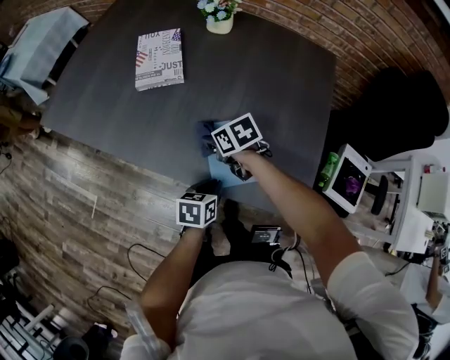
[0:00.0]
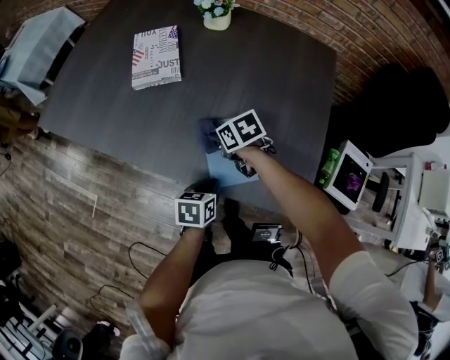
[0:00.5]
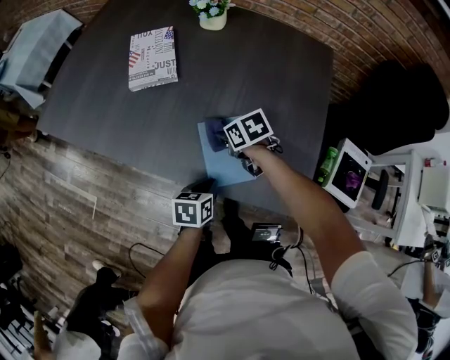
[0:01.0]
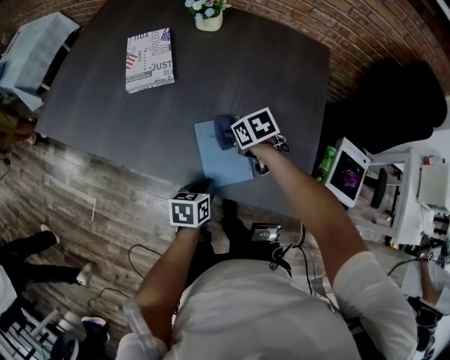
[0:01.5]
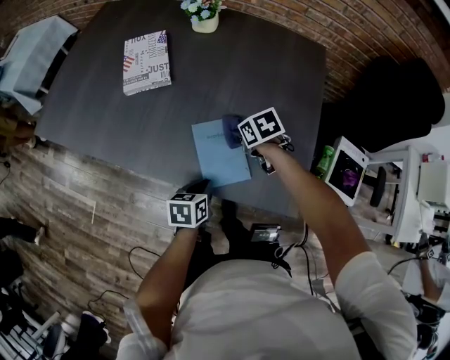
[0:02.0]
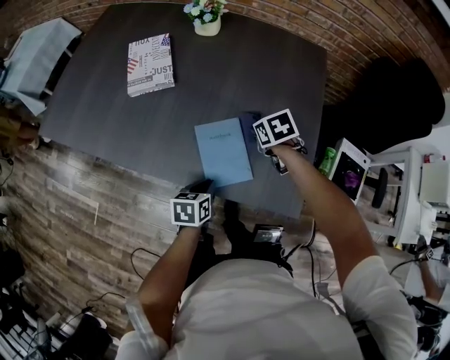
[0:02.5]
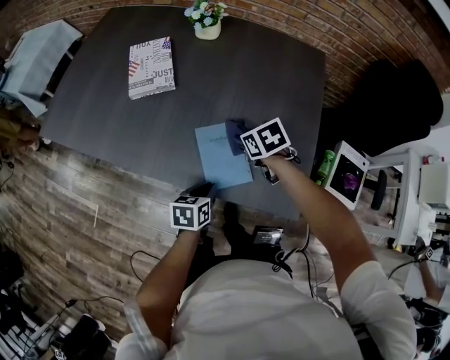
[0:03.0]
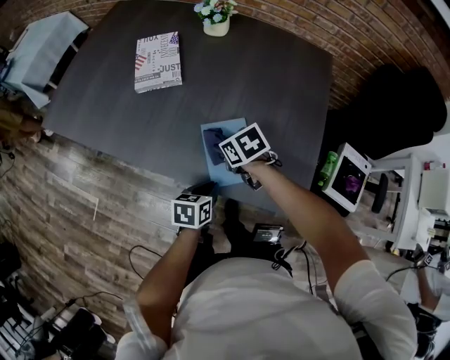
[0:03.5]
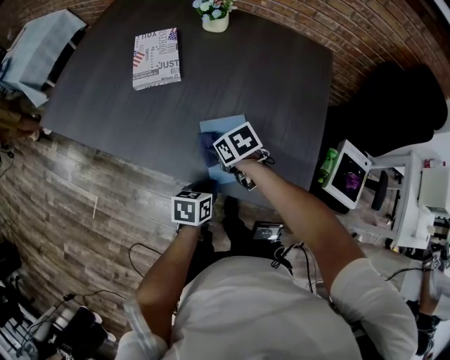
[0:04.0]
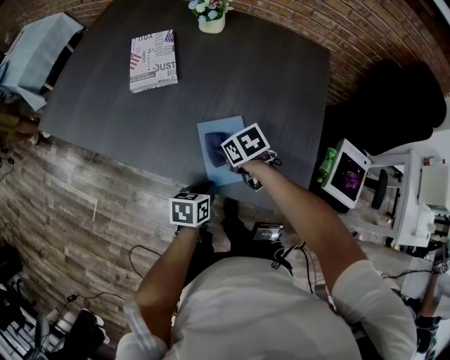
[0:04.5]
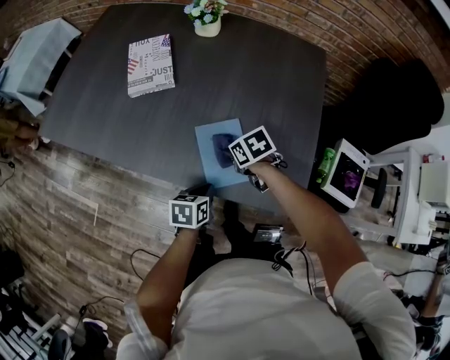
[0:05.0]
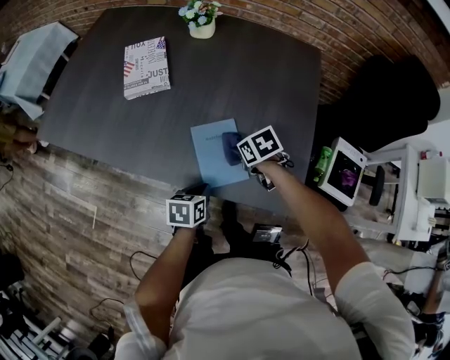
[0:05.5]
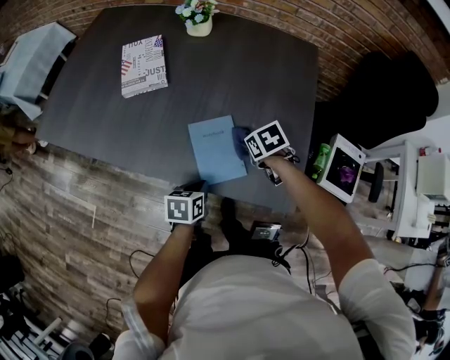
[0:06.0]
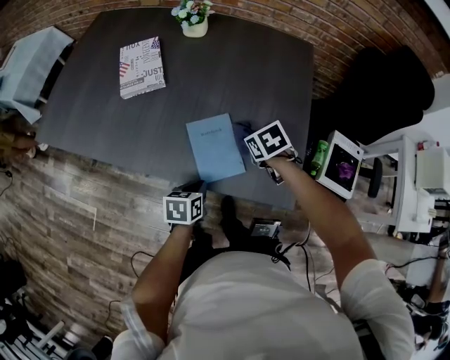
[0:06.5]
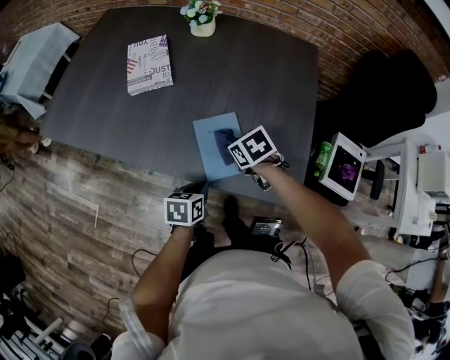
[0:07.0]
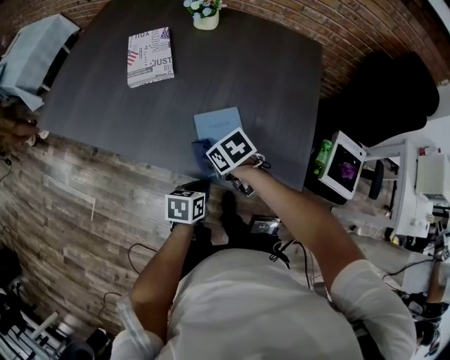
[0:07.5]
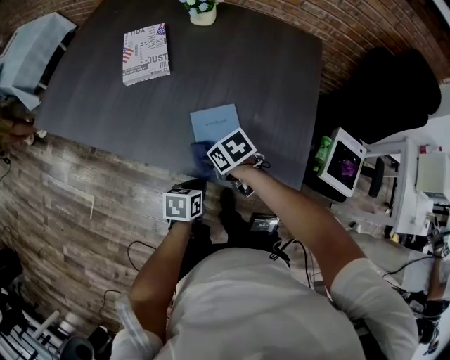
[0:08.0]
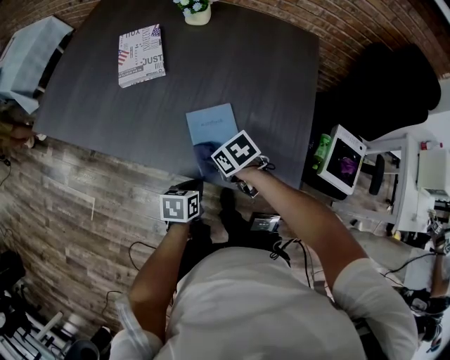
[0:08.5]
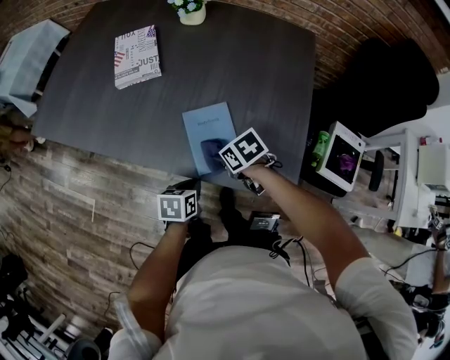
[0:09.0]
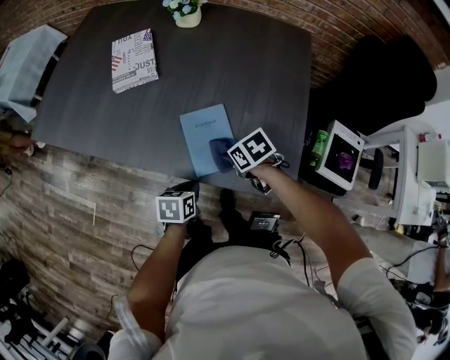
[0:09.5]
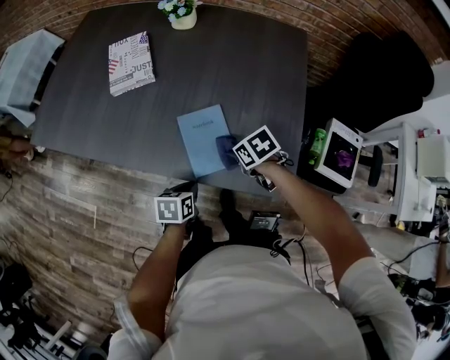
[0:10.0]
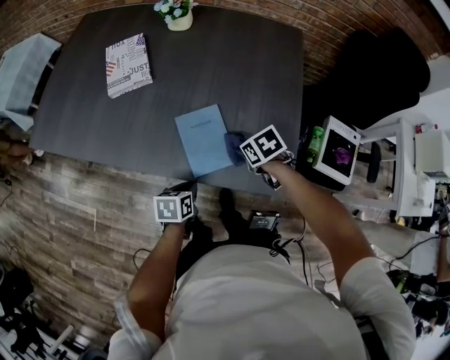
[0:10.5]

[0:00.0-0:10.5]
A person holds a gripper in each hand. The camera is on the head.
0:00.0 to 0:02.0: The right gripper shifts approximately 15 cm to the right.
0:02.0 to 0:04.0: The right gripper moves to the left and backward, some 10 cm.
0:04.0 to 0:06.5: The right gripper heads to the right, covering roughly 15 cm.
0:06.5 to 0:08.5: The right gripper ends up approximately 15 cm from where it was, and rotates some 20 degrees.
0:08.5 to 0:10.5: The right gripper moves approximately 15 cm.

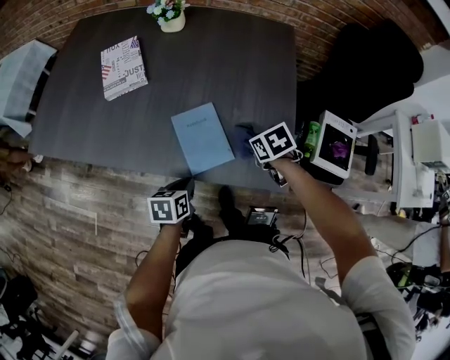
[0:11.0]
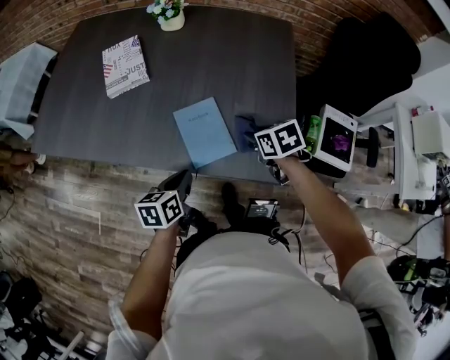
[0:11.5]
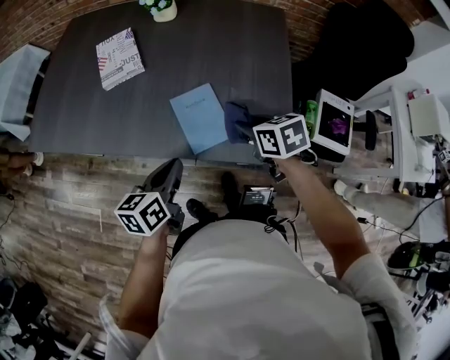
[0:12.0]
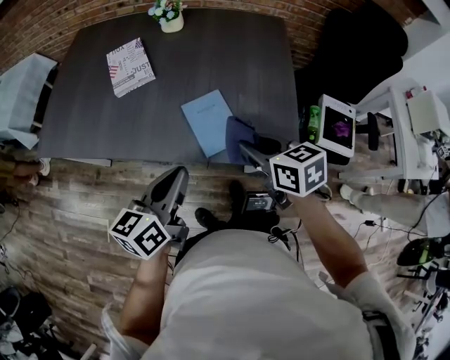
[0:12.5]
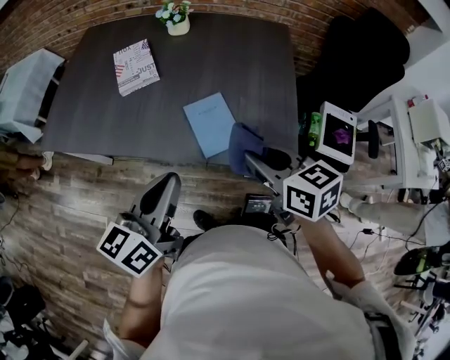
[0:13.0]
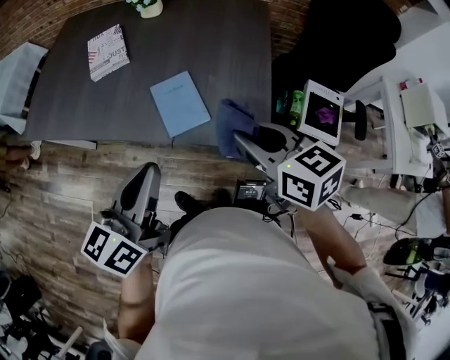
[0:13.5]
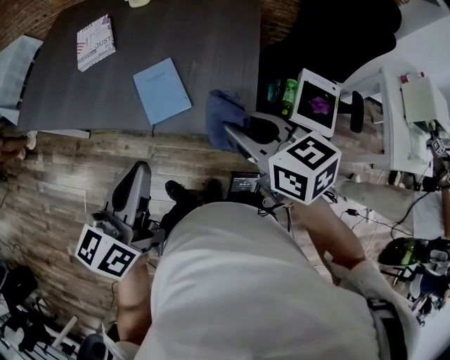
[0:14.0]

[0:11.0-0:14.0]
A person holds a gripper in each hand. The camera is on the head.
0:11.0 to 0:12.5: The left gripper goes about 20 cm upward, and tips its fingers upward by approximately 30 degrees, while the right gripper is displaced upward, backward and to the left by approximately 20 cm, and tilts its fingers some 30 degrees upward.
0:12.5 to 0:14.0: Both grippers move to the right, backward and upward, roughly 15 cm.

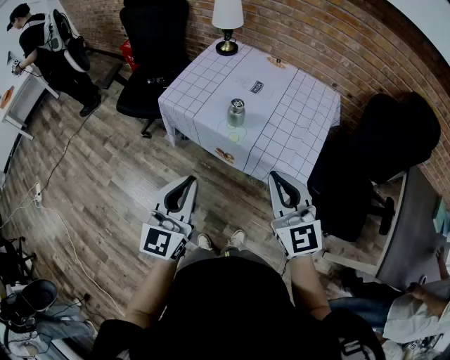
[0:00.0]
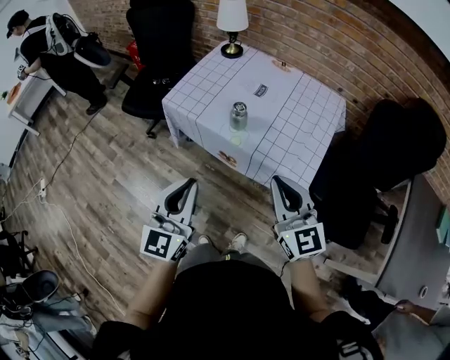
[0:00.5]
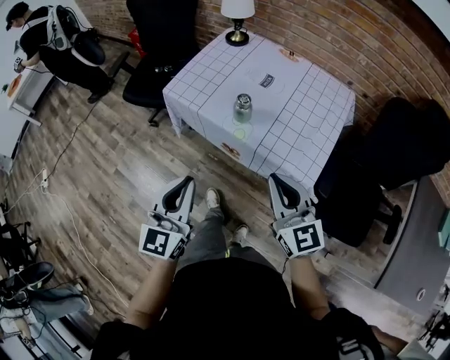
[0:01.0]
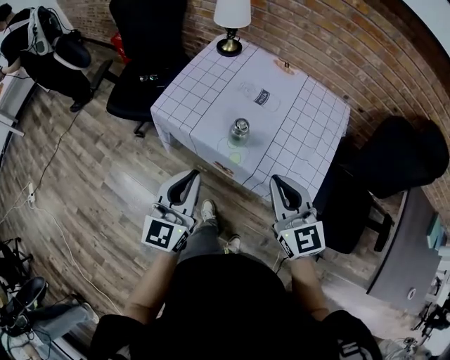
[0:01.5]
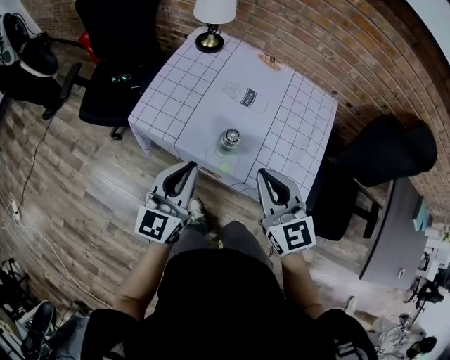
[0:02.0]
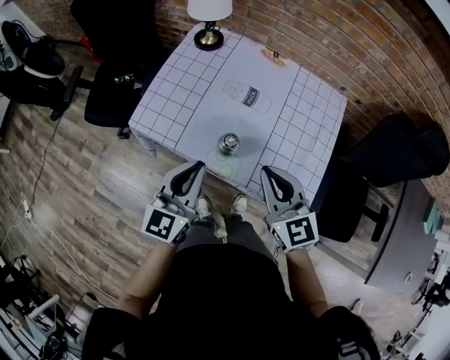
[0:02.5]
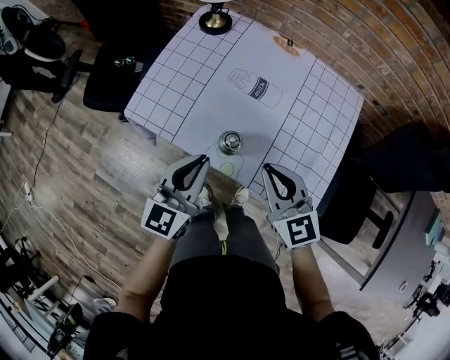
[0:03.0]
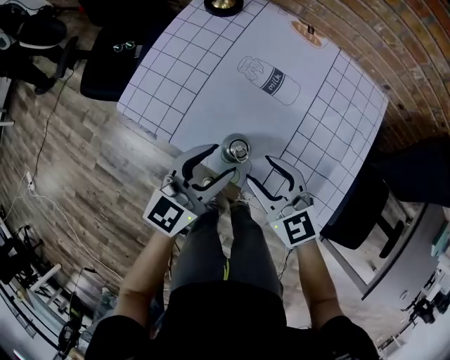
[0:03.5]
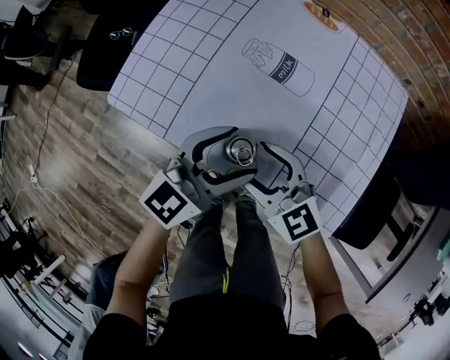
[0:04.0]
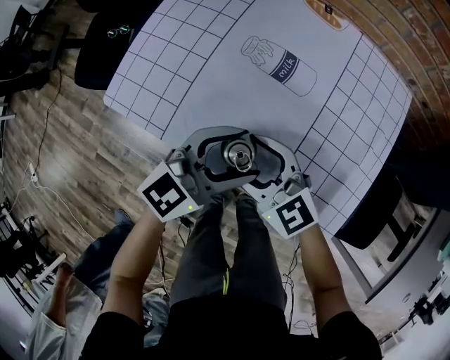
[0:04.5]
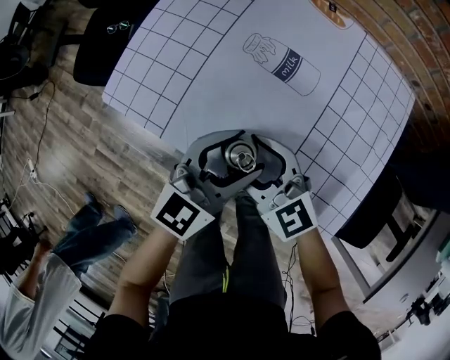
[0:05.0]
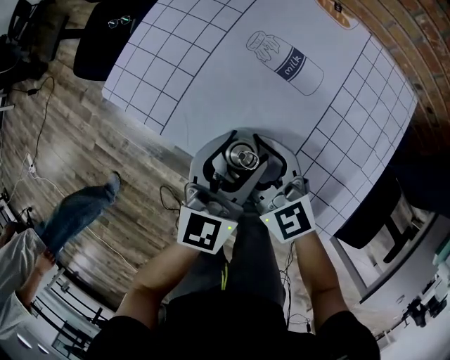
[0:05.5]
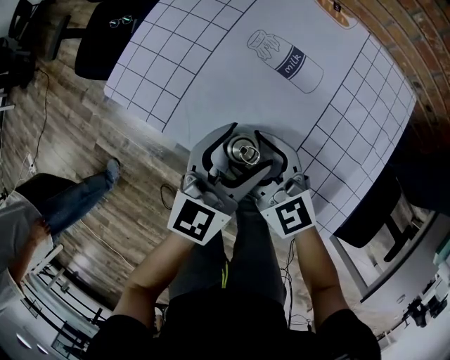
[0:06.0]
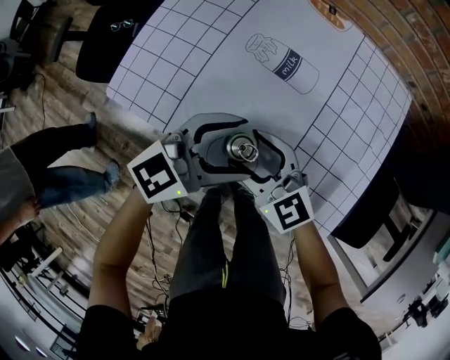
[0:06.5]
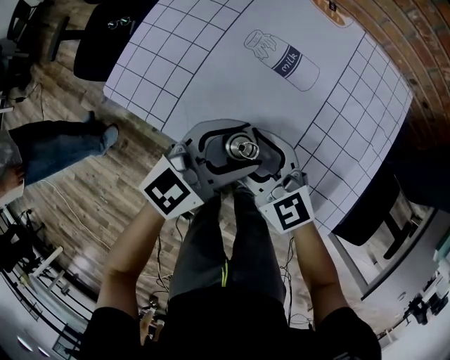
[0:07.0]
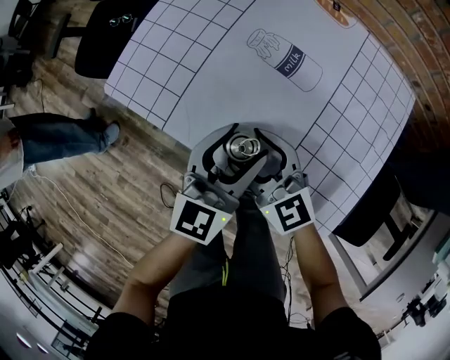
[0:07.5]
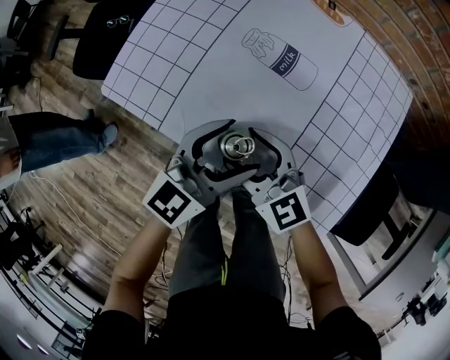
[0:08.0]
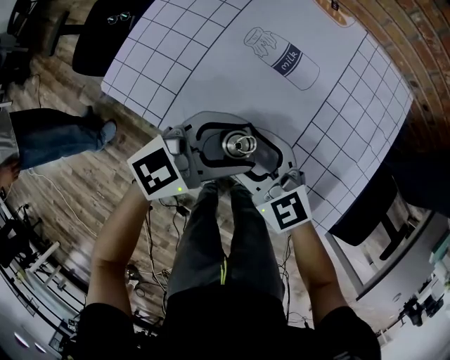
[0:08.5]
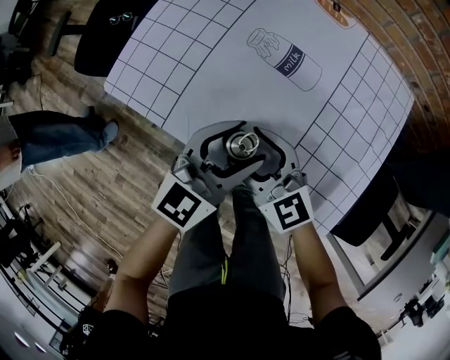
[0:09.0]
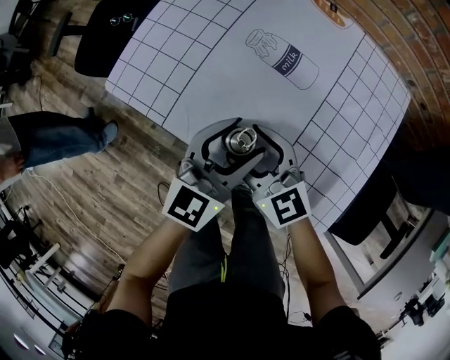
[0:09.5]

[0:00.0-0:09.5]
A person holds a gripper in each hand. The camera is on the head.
0:00.0 to 0:02.0: The two grippers go approximately 25 cm forward.
0:02.0 to 0:04.0: The left gripper moves to the right, downward and forward, roughly 20 cm, changes its angle by approximately 30 degrees, and opens. The right gripper travels downward and forward by about 25 cm, swivels approximately 30 degrees, and opens.
0:04.0 to 0:05.5: The left gripper rotates about 30 degrees.

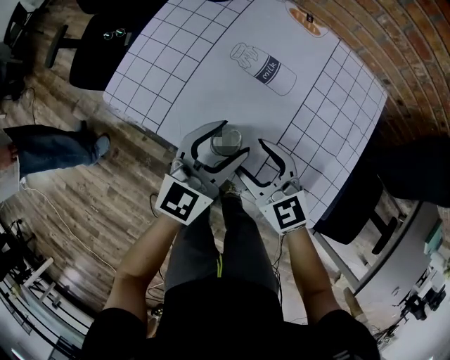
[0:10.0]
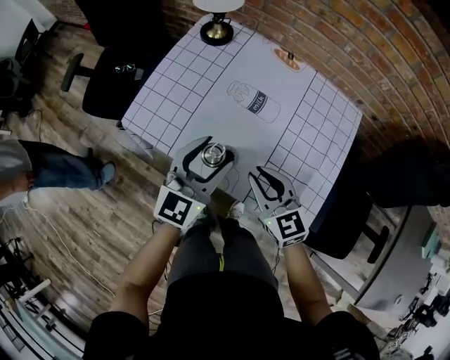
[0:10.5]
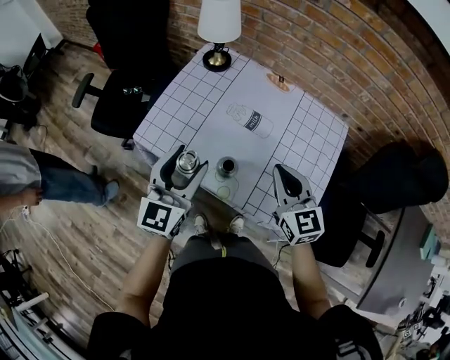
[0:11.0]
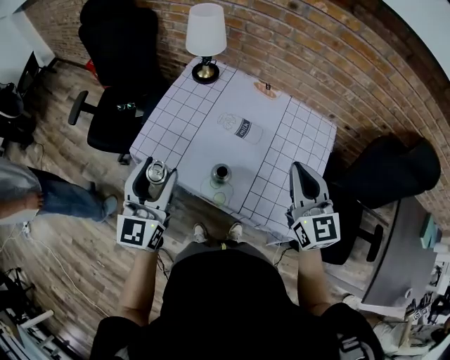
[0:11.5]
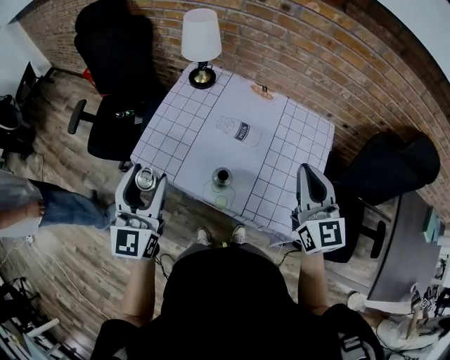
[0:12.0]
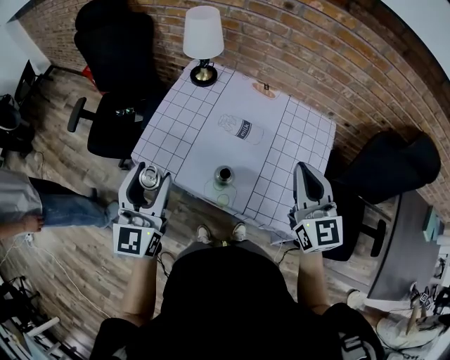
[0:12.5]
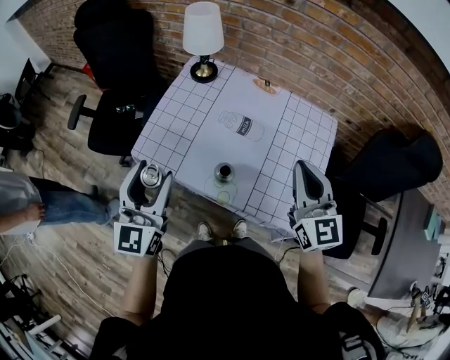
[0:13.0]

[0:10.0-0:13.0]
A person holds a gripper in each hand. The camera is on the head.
0:10.0 to 0:11.5: The left gripper is displaced upward and to the left by some 25 cm, and turns by about 20 degrees. Meanwhile the right gripper goes roughly 30 cm upward and to the right, changes its angle by roughly 30 degrees, and closes.
0:11.5 to 0:13.0: The grippers stay close to where they were, moving slightly.
